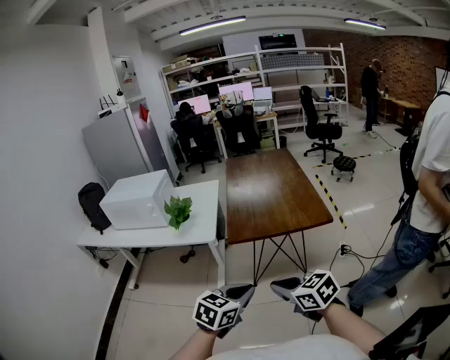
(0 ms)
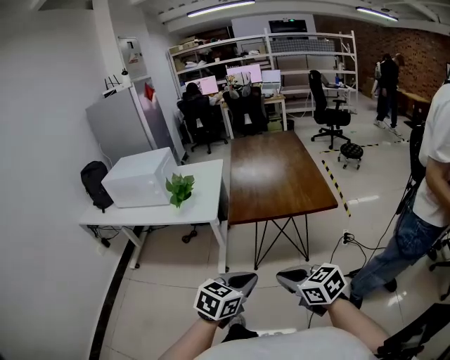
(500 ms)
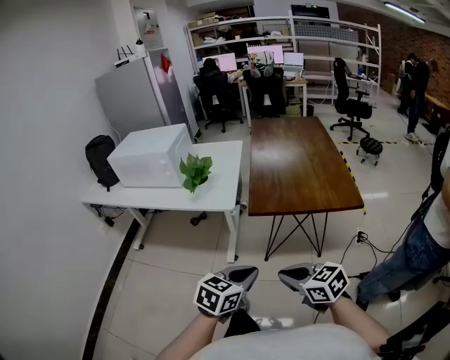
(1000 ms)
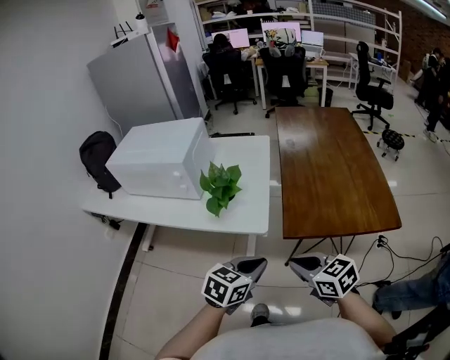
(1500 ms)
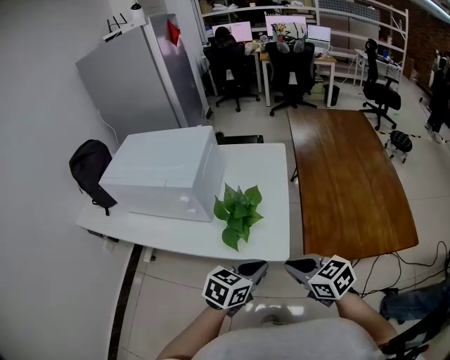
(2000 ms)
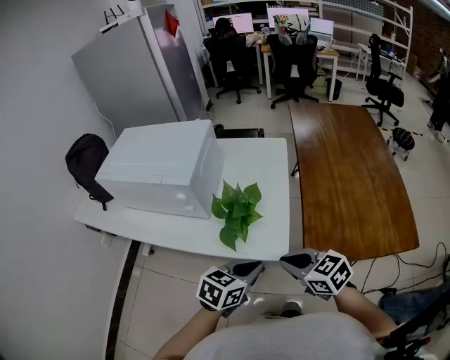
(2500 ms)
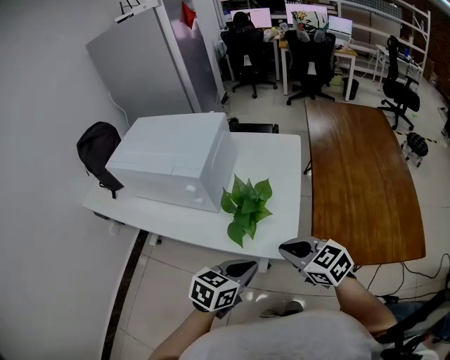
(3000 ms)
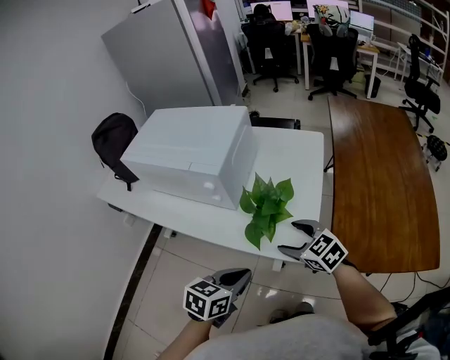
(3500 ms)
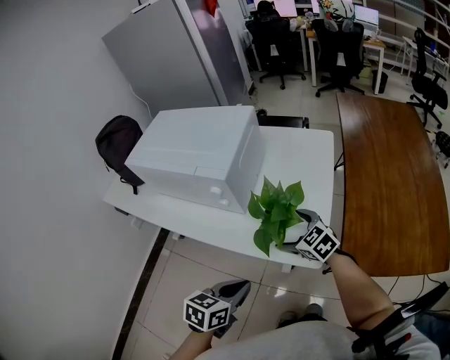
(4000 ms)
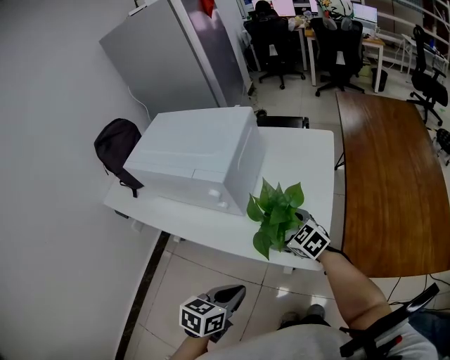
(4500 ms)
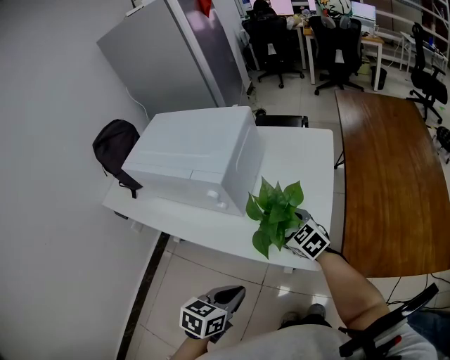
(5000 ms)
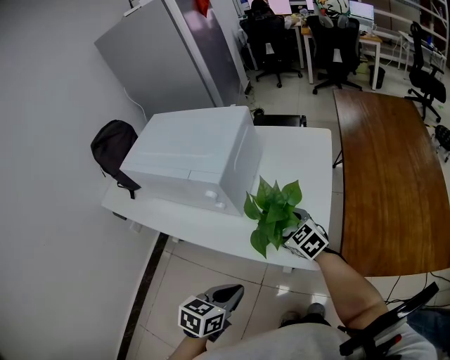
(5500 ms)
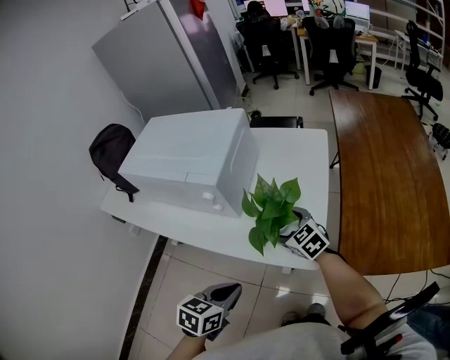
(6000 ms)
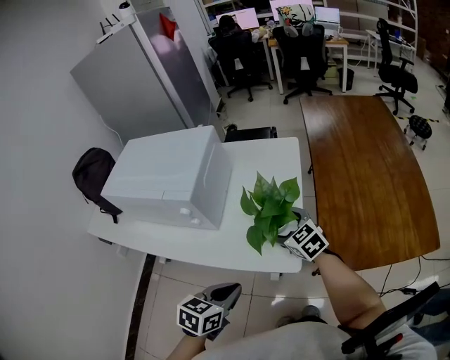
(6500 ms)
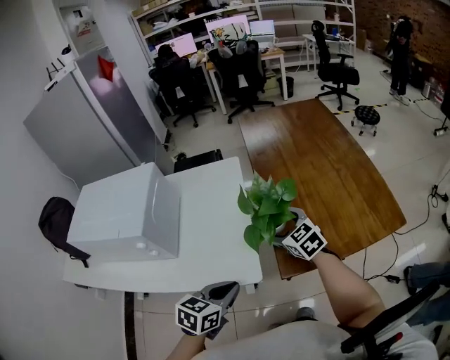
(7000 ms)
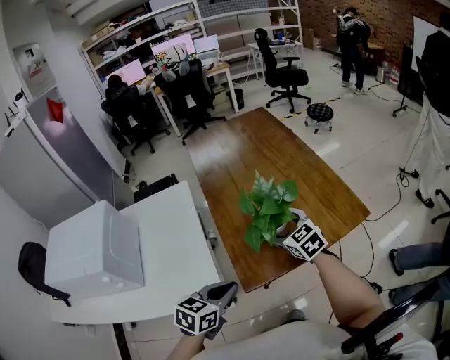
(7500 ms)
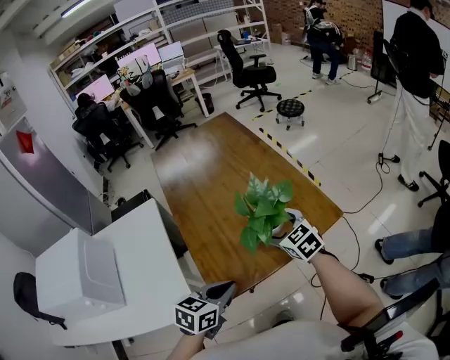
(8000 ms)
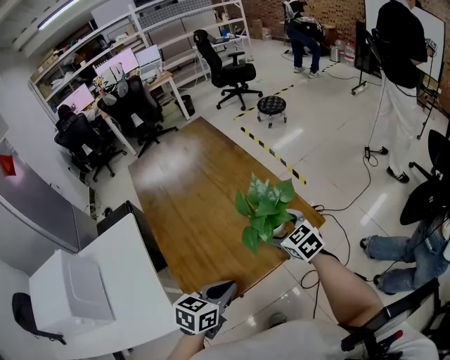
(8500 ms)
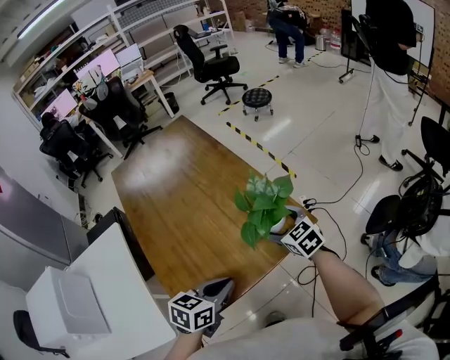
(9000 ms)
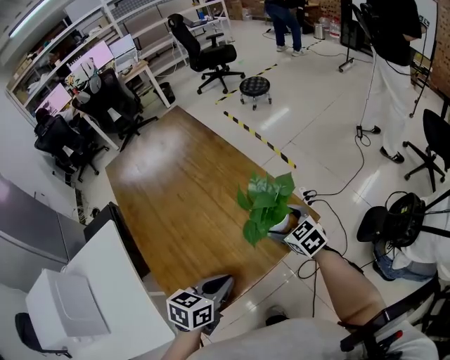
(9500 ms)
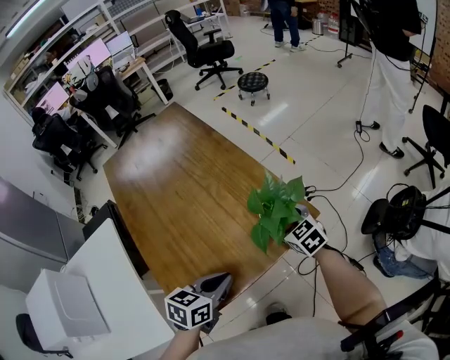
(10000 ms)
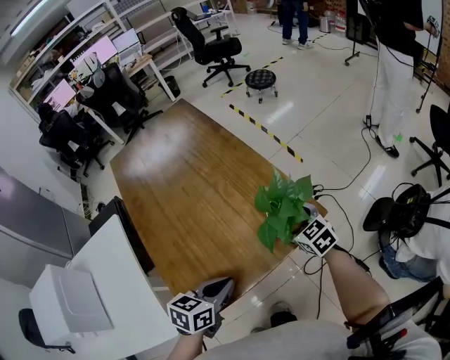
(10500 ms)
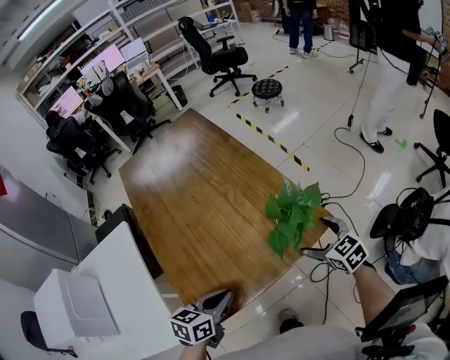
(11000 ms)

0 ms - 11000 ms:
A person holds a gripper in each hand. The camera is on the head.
0 ms - 2000 ms: The pair of grippers is taken forward and to the left, approximately 50 cm.
2000 ms - 3500 ms: The right gripper moves forward, to the left and downward, some 15 cm, and opens up. Meanwhile the left gripper goes some 10 cm to the left.
3500 ms - 5500 ms: The left gripper moves roughly 5 cm; the right gripper heads forward and downward, covering approximately 10 cm.
5500 ms - 7500 ms: The right gripper ends up approximately 40 cm from where it was, and turns by about 40 degrees, while the left gripper changes place by roughly 30 cm, and swivels approximately 40 degrees.
7500 ms - 9000 ms: Both grippers travel together to the right and forward, approximately 25 cm.
9000 ms - 11000 ms: The right gripper is displaced to the right by approximately 5 cm; the left gripper moves roughly 5 cm.

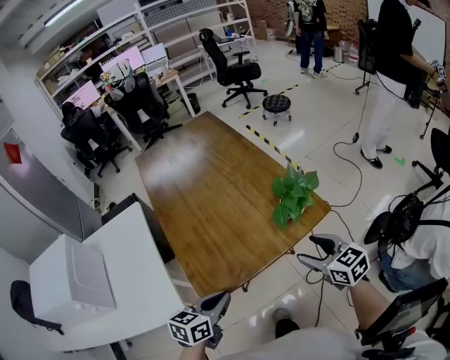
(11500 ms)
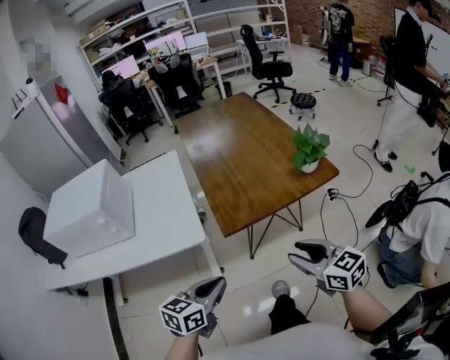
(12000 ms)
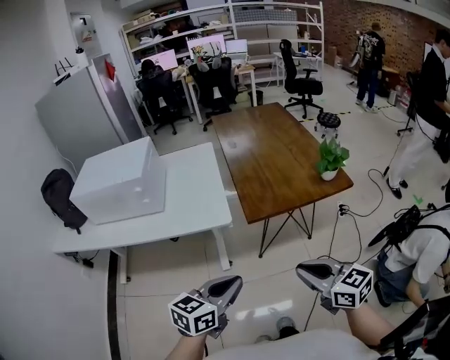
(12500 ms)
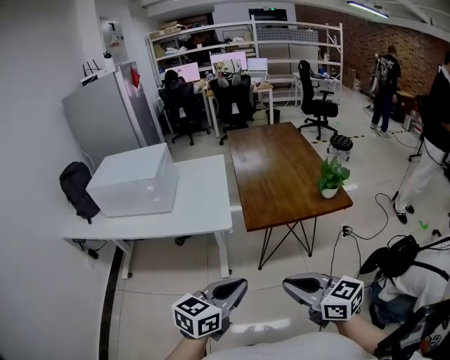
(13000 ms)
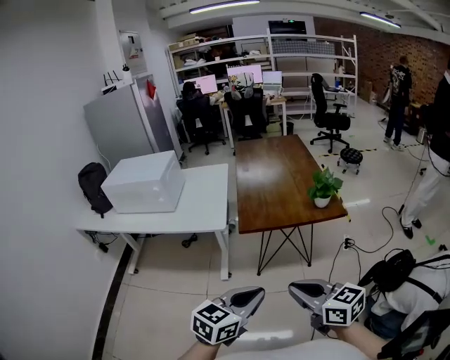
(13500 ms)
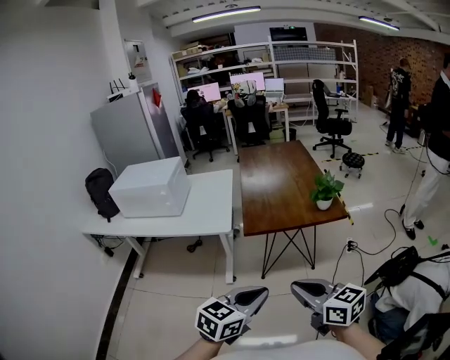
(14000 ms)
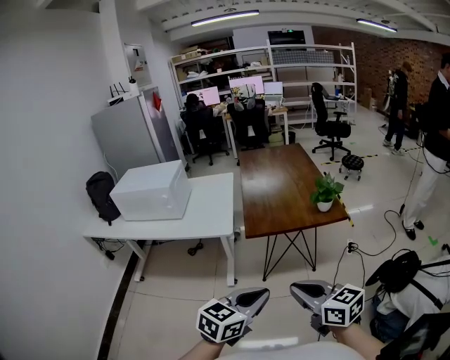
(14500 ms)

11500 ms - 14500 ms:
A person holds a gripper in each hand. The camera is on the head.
11500 ms - 13000 ms: The left gripper shifts roughly 40 cm backward and upward, and swivels some 20 degrees; the right gripper goes roughly 50 cm backward, to the left and upward, changes its angle by roughly 30 degrees, and closes up.
13000 ms - 14500 ms: Both grippers travel together to the right and backward, approximately 15 cm.

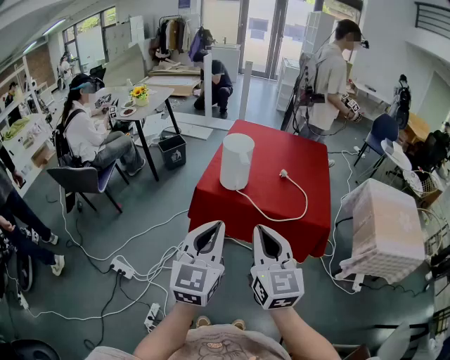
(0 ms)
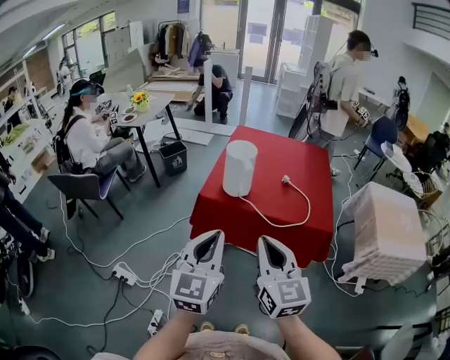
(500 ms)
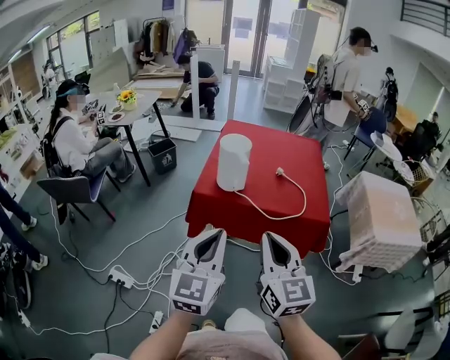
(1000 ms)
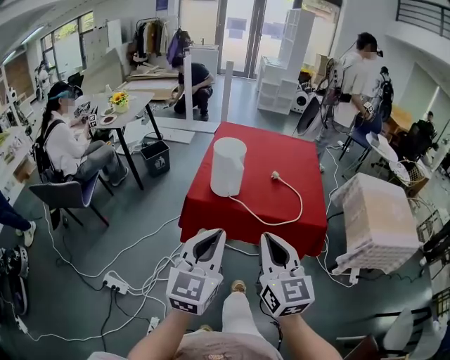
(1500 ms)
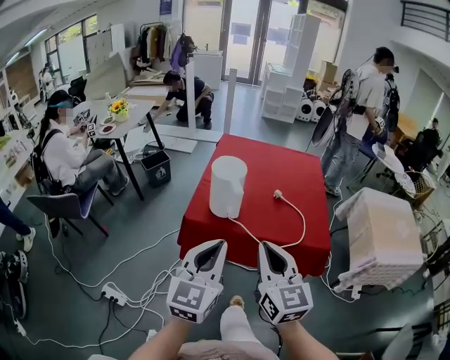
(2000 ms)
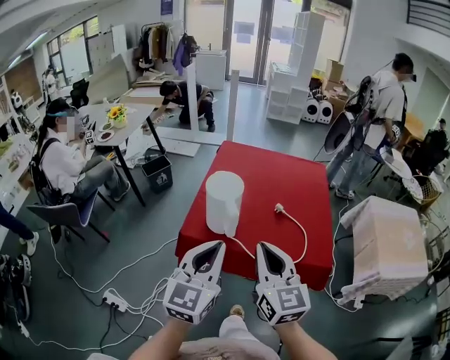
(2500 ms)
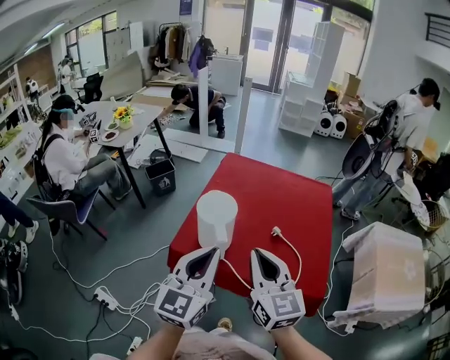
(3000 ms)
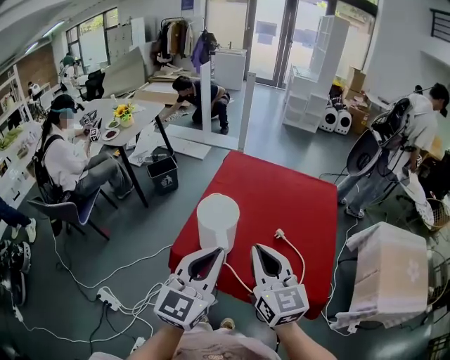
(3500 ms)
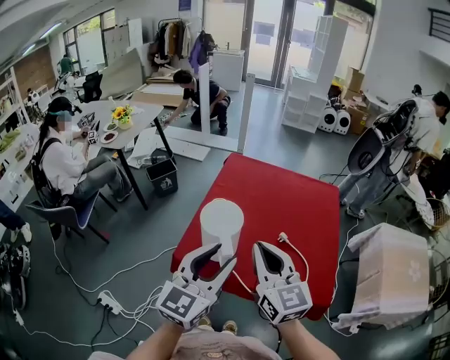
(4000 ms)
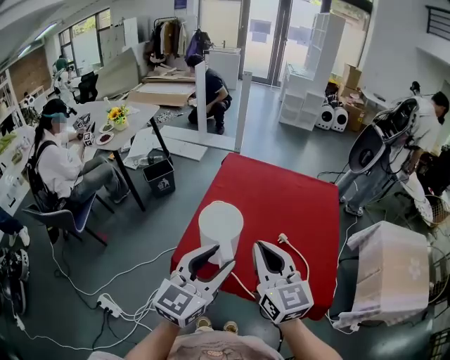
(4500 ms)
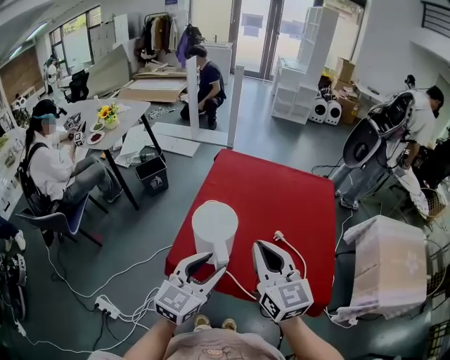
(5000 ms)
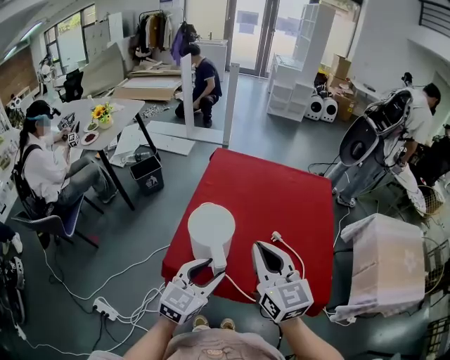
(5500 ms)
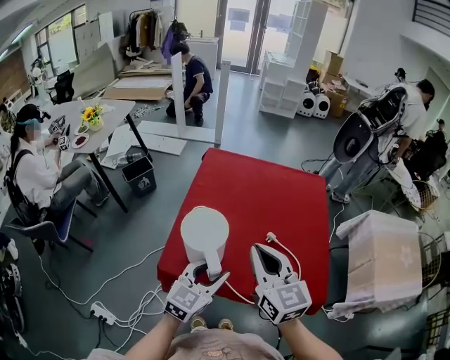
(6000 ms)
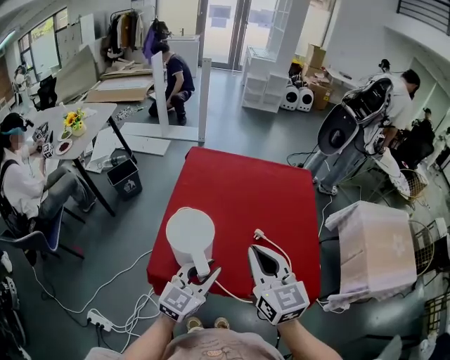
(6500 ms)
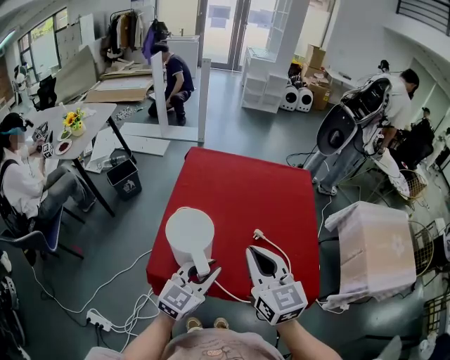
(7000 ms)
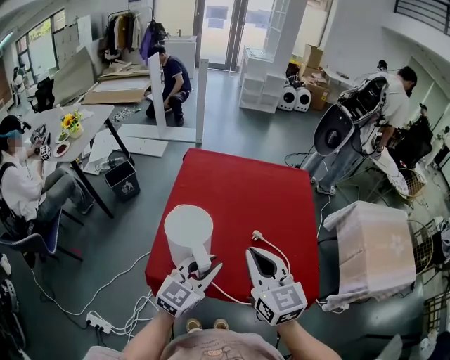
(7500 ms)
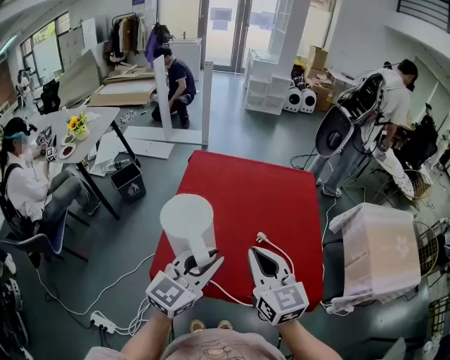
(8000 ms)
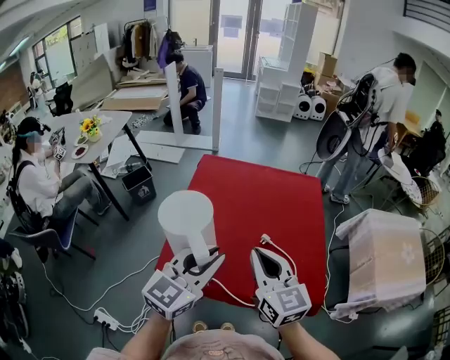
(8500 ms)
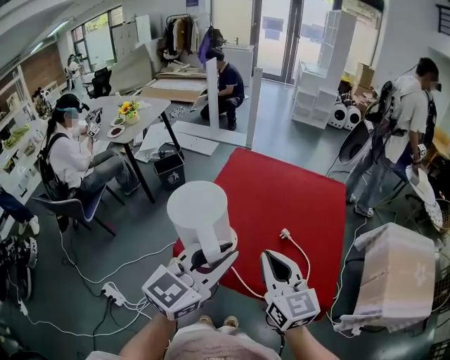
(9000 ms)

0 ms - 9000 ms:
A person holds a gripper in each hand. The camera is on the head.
0 ms - 2000 ms: Both grippers move forward, some 10 cm.
2000 ms - 4500 ms: The two grippers go approximately 20 cm forward. The left gripper opens up.
4500 ms - 7000 ms: The left gripper moves downward, some 15 cm, and closes its fingers. Meanwhile the right gripper moves some 5 cm.
7000 ms - 9000 ms: The left gripper heads upward, covering about 20 cm. The right gripper moves backward, roughly 5 cm.

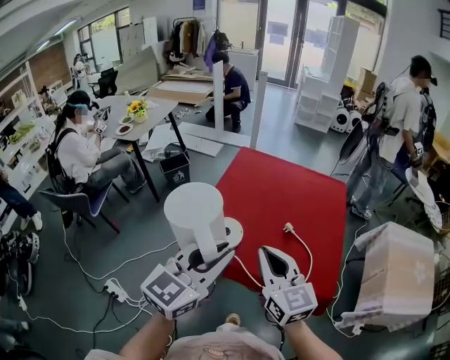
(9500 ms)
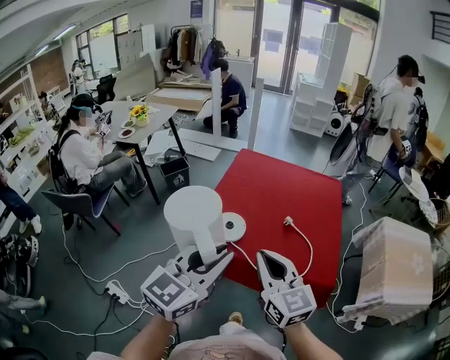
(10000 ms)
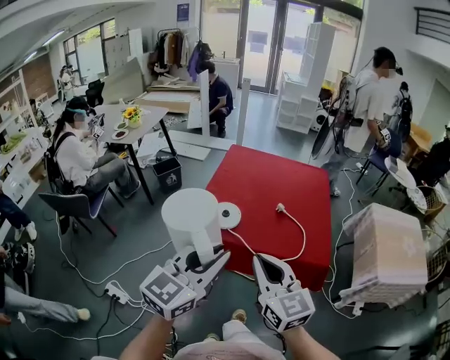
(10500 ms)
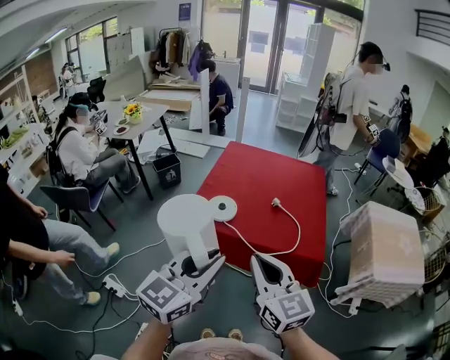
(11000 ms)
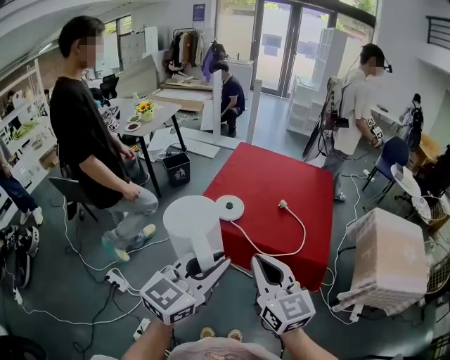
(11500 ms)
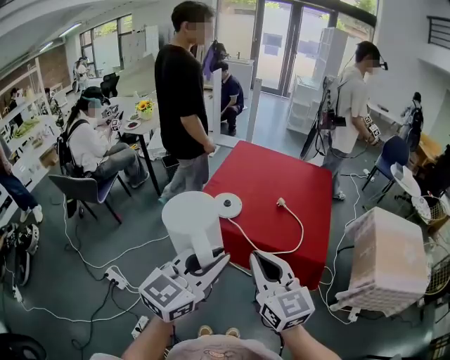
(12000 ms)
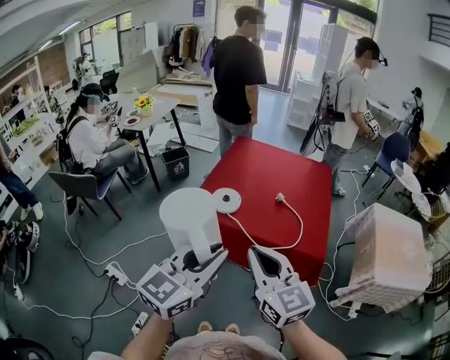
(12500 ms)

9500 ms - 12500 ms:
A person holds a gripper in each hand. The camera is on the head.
9500 ms - 11000 ms: Both grippers move backward, approximately 20 cm.
11000 ms - 12500 ms: The grippers stay close to where they were, moving slightly.
